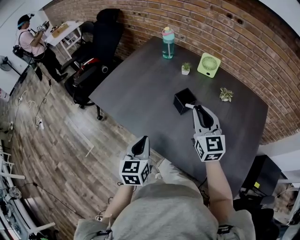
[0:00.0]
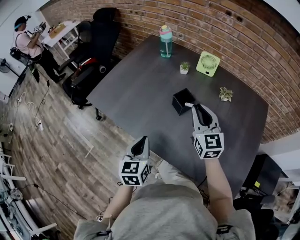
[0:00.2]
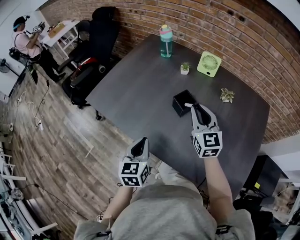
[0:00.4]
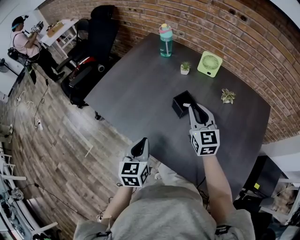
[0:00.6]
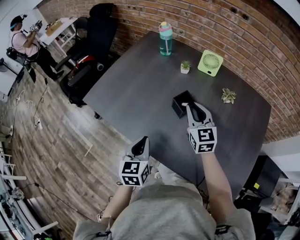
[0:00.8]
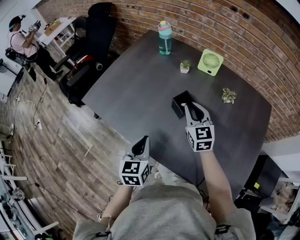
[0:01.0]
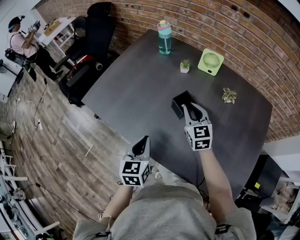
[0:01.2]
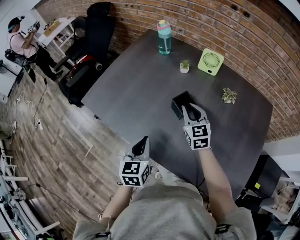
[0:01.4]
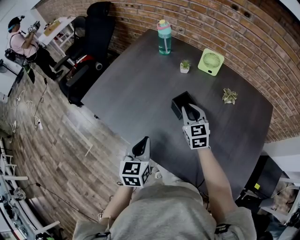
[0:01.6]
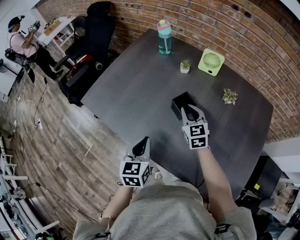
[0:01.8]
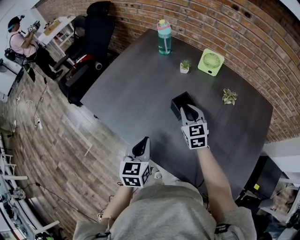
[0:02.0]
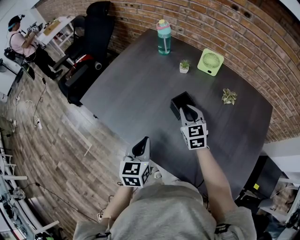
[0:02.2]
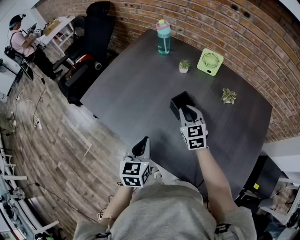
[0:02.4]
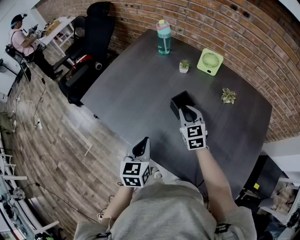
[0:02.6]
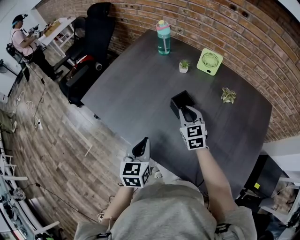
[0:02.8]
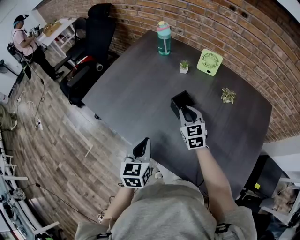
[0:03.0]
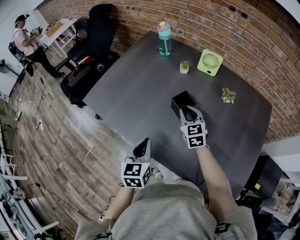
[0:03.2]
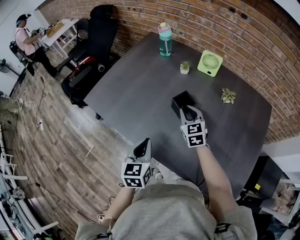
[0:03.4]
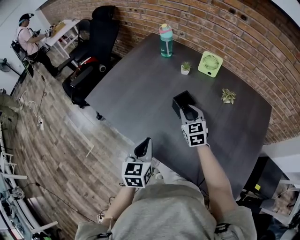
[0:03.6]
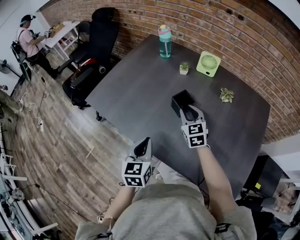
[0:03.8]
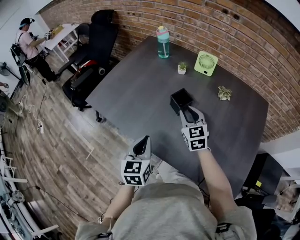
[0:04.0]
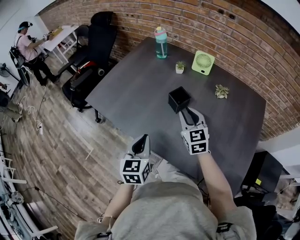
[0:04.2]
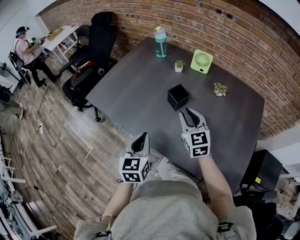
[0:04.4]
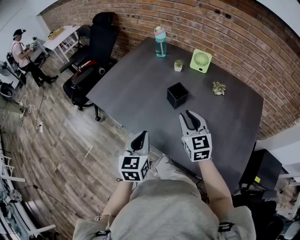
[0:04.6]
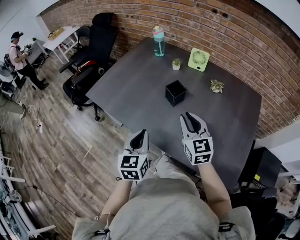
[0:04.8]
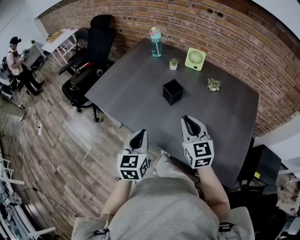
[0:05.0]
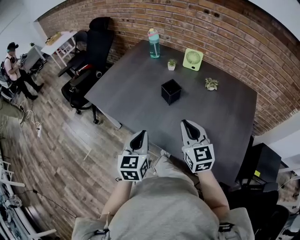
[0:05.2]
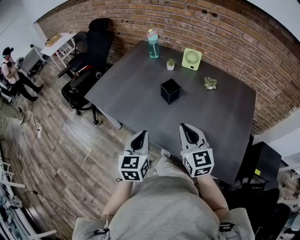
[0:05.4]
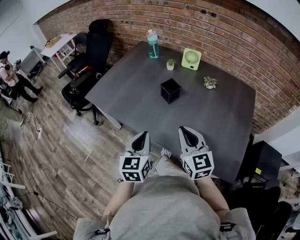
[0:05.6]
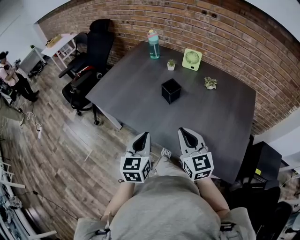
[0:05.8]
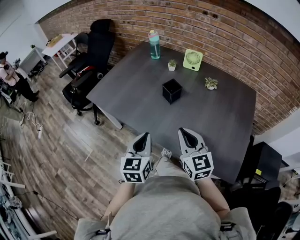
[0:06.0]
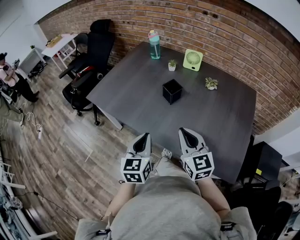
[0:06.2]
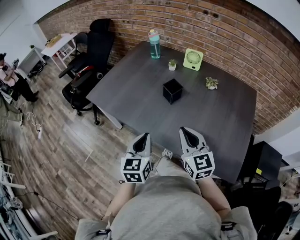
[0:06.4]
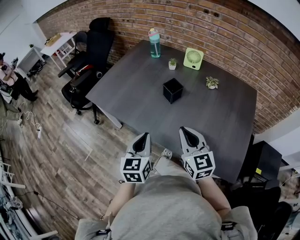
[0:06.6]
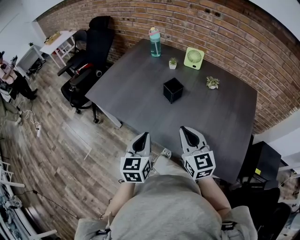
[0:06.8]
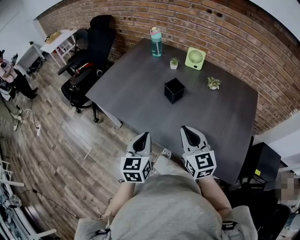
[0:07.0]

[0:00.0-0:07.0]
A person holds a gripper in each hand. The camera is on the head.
0:00.0 to 0:01.4: The right gripper is displaced downward and forward by about 15 cm; the left gripper travels forward by approximately 5 cm.
0:01.4 to 0:02.8: The grippers make only small movements.
0:02.8 to 0:04.2: The left gripper heads backward, covering roughly 5 cm. Meanwhile the right gripper is displaced backward and upward by approximately 10 cm.
0:04.2 to 0:05.6: The right gripper is displaced backward by roughly 20 cm, and closes its fingers. Meanwhile the left gripper travels backward by some 10 cm.
0:05.6 to 0:07.0: The grippers make only small movements.

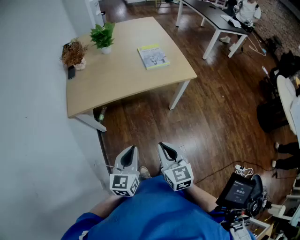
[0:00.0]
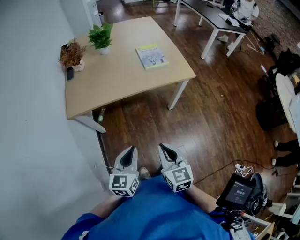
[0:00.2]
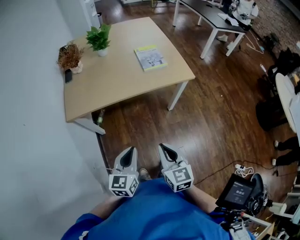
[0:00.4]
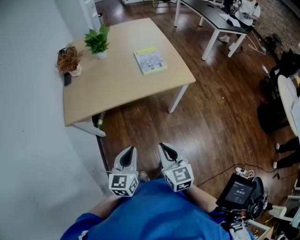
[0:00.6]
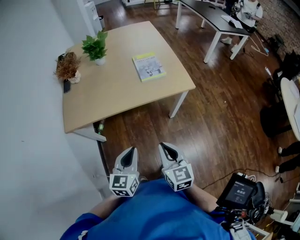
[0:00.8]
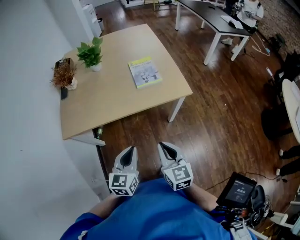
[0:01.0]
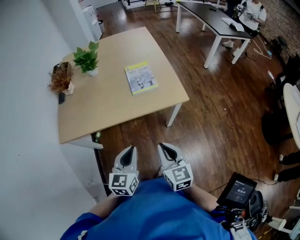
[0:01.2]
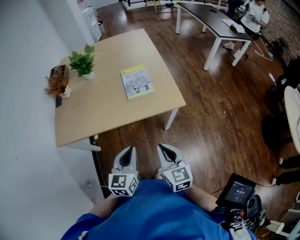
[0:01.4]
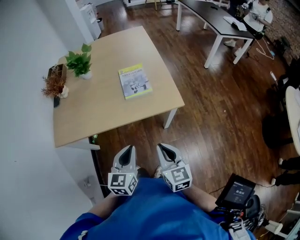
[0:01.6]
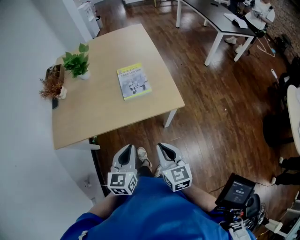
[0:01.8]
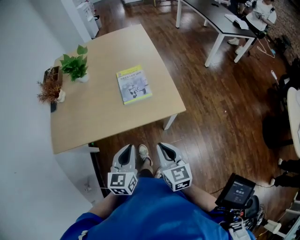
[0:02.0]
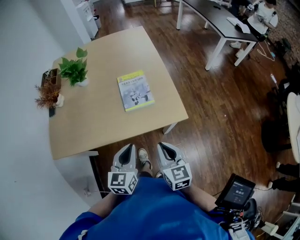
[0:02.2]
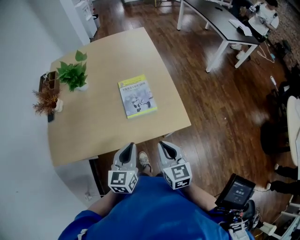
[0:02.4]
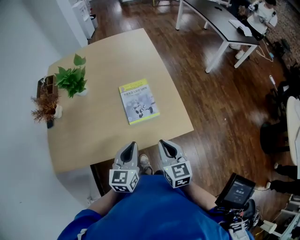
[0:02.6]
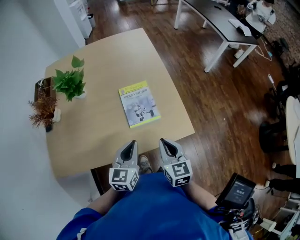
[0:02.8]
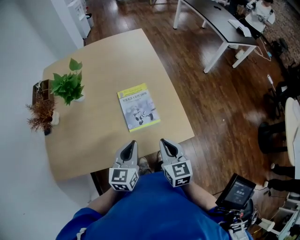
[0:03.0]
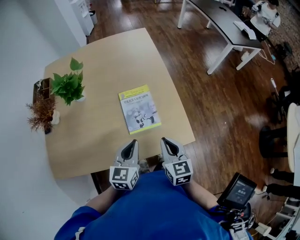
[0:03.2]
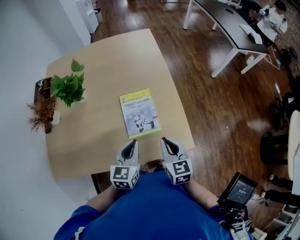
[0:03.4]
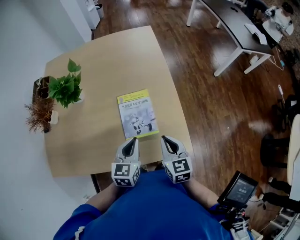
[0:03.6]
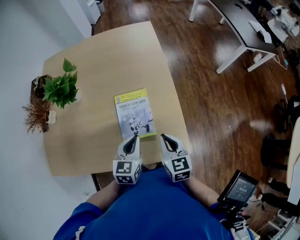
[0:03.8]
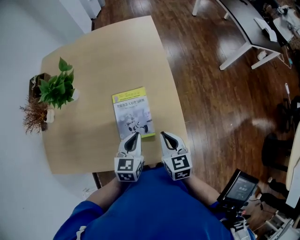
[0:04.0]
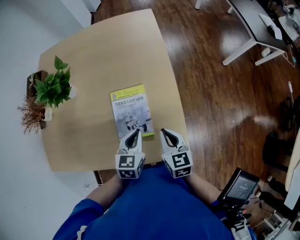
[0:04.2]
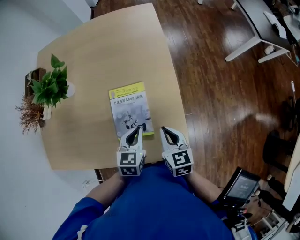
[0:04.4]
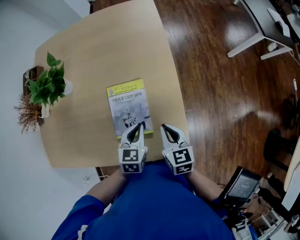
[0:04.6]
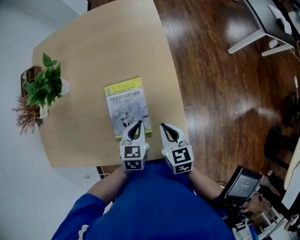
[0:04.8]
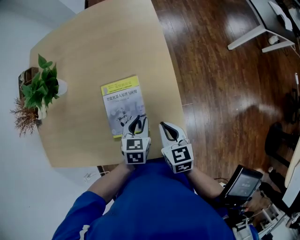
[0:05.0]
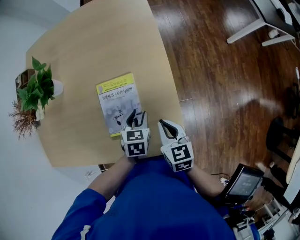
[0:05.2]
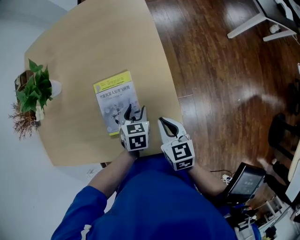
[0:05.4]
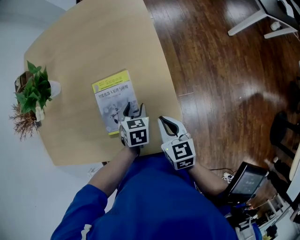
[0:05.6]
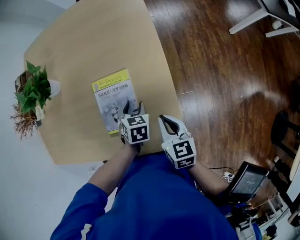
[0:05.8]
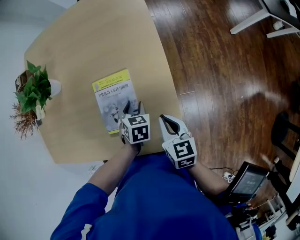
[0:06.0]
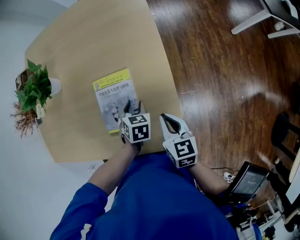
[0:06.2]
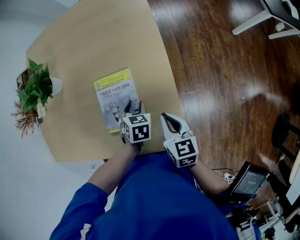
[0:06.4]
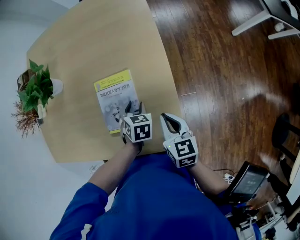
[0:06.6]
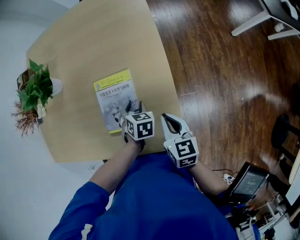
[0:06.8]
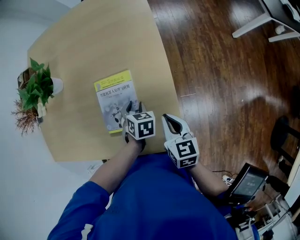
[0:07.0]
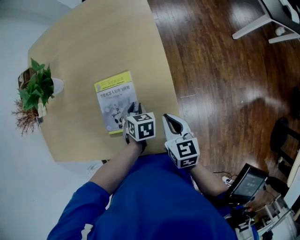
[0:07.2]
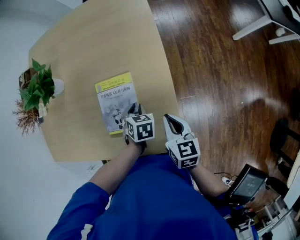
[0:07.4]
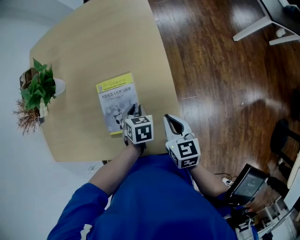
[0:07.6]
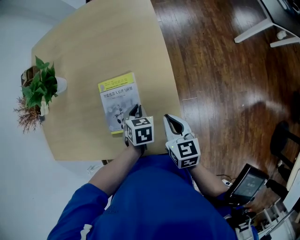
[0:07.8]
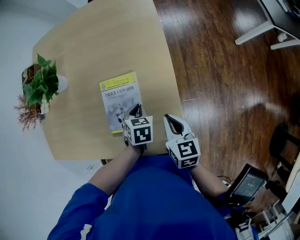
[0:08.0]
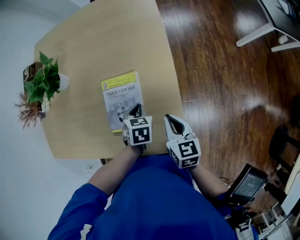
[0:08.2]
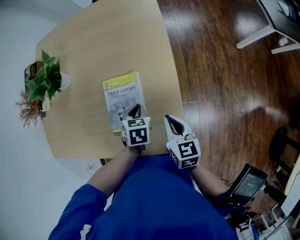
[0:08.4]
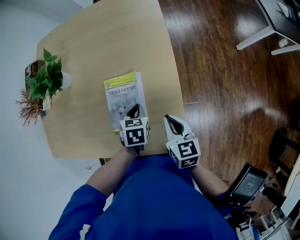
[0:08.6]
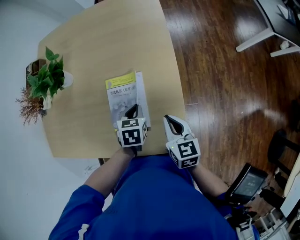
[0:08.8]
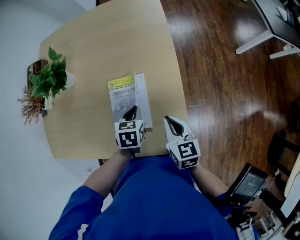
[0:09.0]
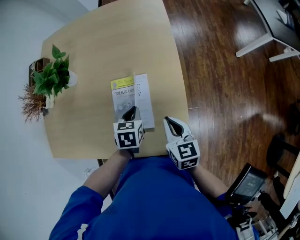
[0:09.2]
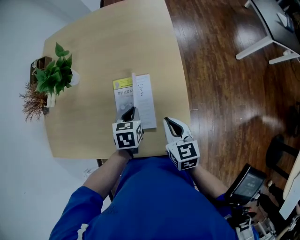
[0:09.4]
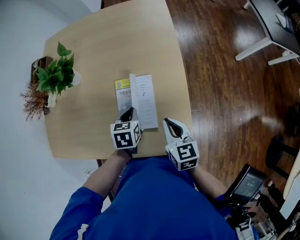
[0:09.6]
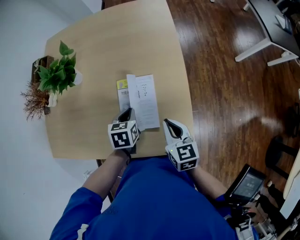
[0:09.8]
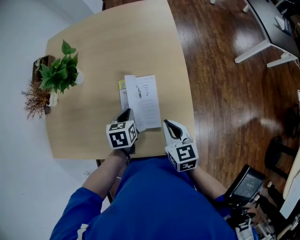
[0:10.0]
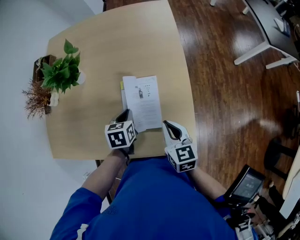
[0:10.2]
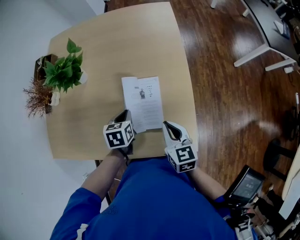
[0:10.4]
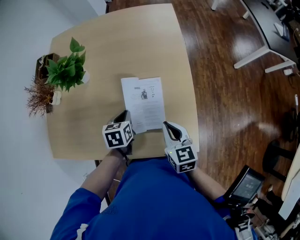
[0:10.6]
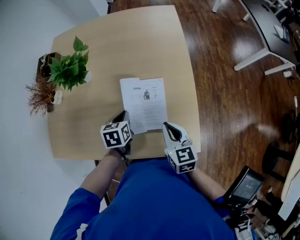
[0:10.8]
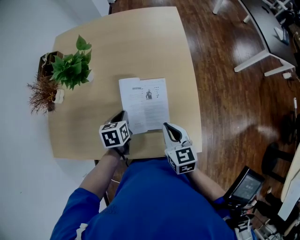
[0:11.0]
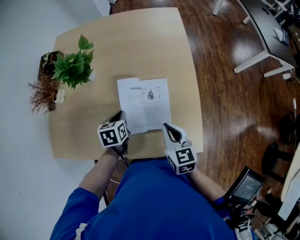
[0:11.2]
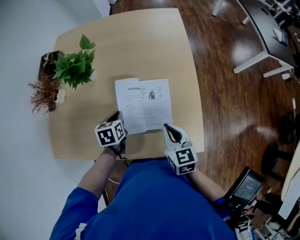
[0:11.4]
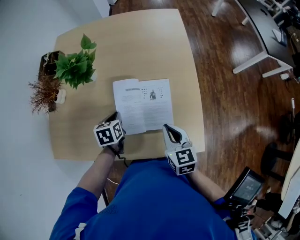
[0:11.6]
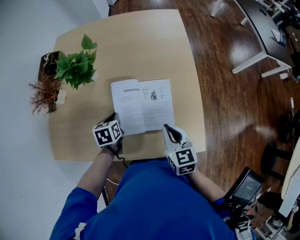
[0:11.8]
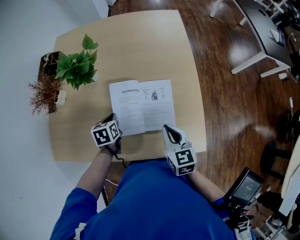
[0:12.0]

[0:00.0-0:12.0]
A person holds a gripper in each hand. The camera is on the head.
0:00.0 to 0:01.6: Both grippers move forward and to the right, roughly 30 cm.
0:01.6 to 0:03.0: Both grippers move forward, roughly 25 cm.
0:03.0 to 0:04.4: Both grippers move forward, downward and to the right, about 20 cm. The left gripper turns by approximately 20 degrees.
0:04.4 to 0:06.0: The left gripper goes approximately 10 cm downward and forward, swivels about 30 degrees, and opens its fingers. Meanwhile the right gripper shifts by some 5 cm.
0:06.0 to 0:07.6: The left gripper closes.
0:07.6 to 0:09.0: The left gripper travels upward by about 5 cm.
0:09.0 to 0:10.4: The left gripper heads to the left, covering about 10 cm, while the right gripper is displaced to the left by roughly 5 cm.
0:10.4 to 0:12.0: The left gripper travels to the left by roughly 15 cm, while the right gripper travels to the left by approximately 10 cm.

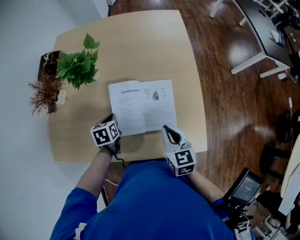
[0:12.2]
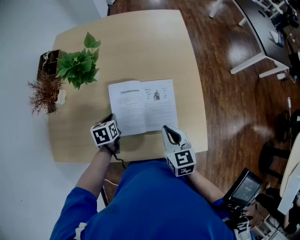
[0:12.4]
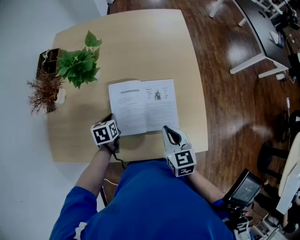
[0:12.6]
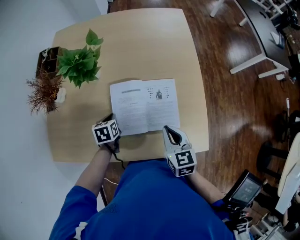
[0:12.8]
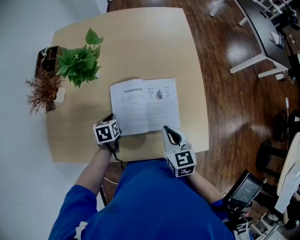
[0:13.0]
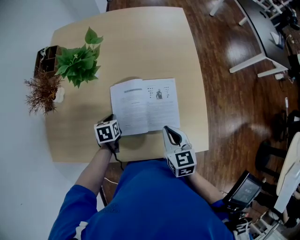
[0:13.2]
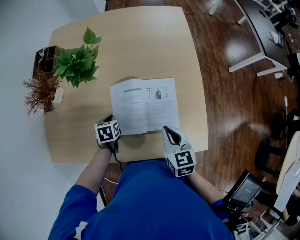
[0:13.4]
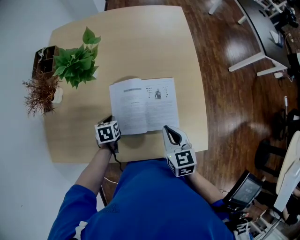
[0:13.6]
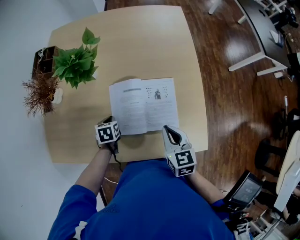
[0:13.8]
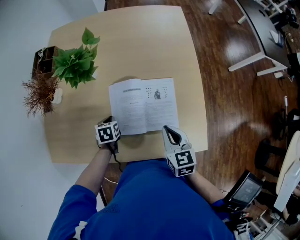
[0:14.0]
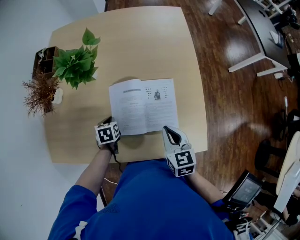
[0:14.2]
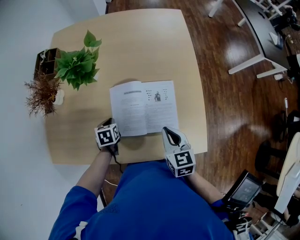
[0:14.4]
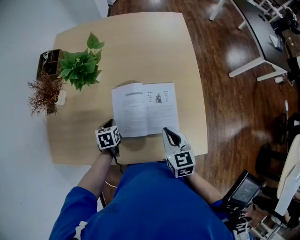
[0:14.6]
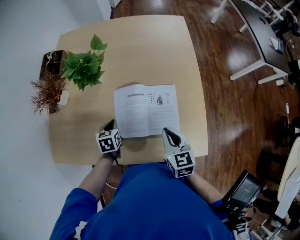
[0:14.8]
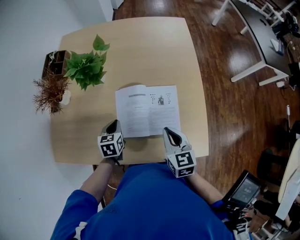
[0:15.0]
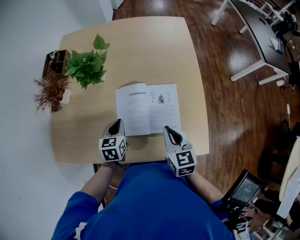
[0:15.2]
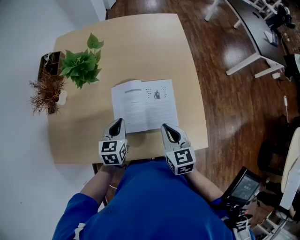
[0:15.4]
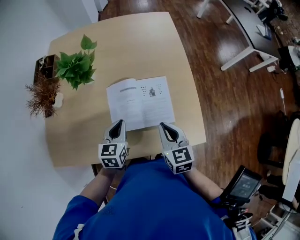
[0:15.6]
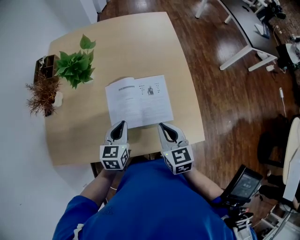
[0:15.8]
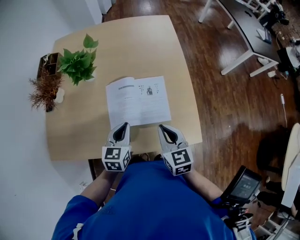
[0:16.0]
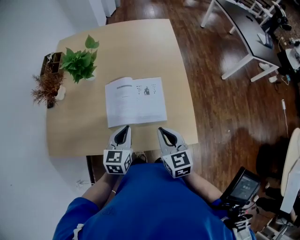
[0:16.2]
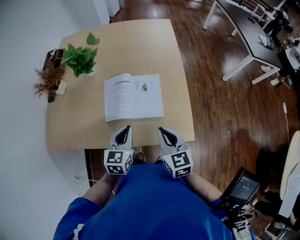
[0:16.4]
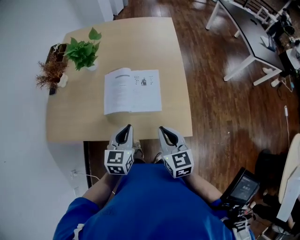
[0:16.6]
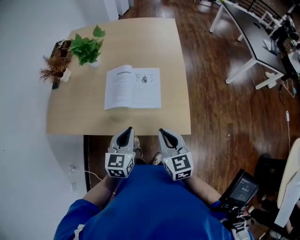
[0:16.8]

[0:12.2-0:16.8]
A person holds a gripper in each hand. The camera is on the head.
0:12.2 to 0:13.8: The left gripper moves downward, roughly 5 cm.
0:13.8 to 0:15.2: The left gripper moves upward, some 10 cm, and rotates some 20 degrees.
0:15.2 to 0:16.8: The left gripper travels backward, to the right and upward by roughly 30 cm; the right gripper is displaced backward and to the right by about 20 cm.
